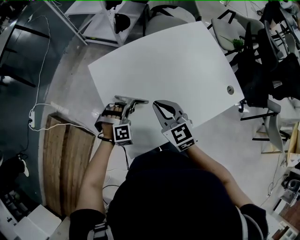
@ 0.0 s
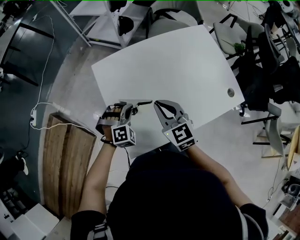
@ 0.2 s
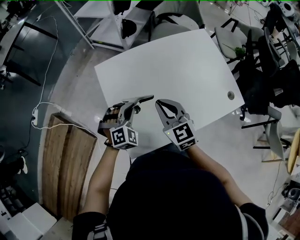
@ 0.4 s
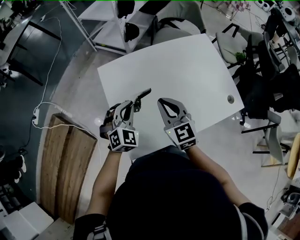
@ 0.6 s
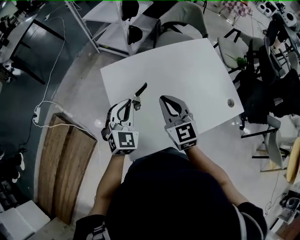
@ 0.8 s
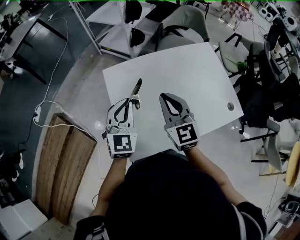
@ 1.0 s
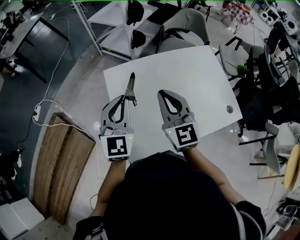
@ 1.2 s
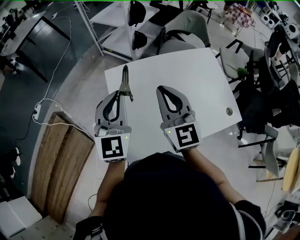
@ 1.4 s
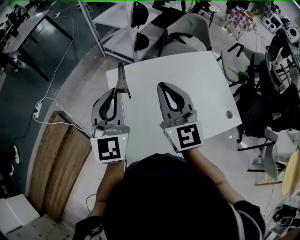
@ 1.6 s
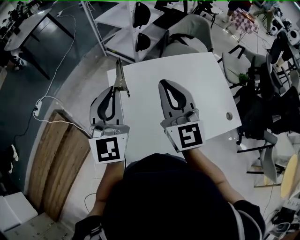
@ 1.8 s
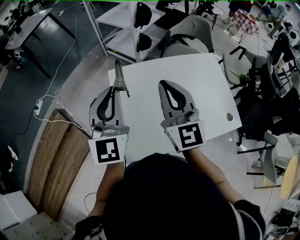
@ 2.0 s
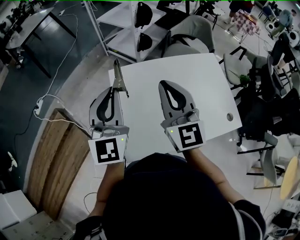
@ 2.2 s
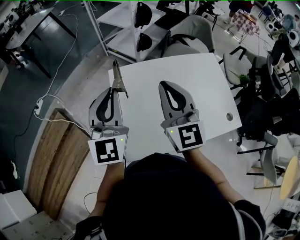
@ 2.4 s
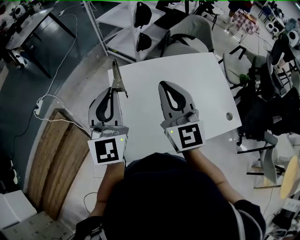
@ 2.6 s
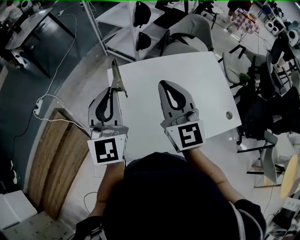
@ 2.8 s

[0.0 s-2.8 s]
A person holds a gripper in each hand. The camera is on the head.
0.0 to 1.4 s: The right gripper goes approximately 20 cm upward, and rotates about 30 degrees, while the left gripper shifts about 35 cm upward, and tips its fingers upward by about 50 degrees.
1.4 to 2.8 s: The grippers make only small movements.

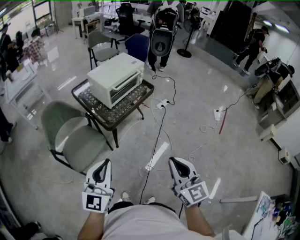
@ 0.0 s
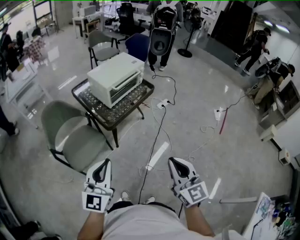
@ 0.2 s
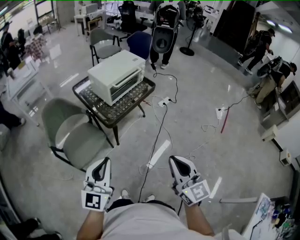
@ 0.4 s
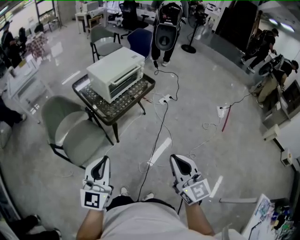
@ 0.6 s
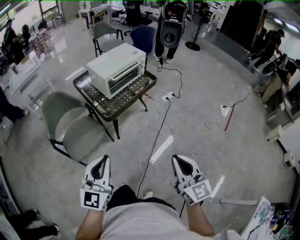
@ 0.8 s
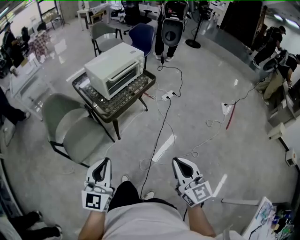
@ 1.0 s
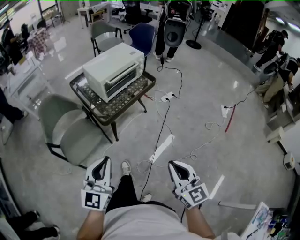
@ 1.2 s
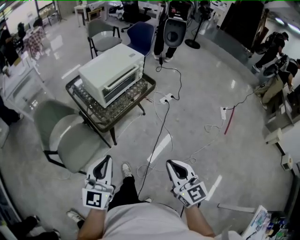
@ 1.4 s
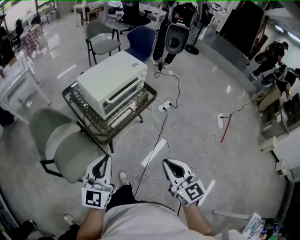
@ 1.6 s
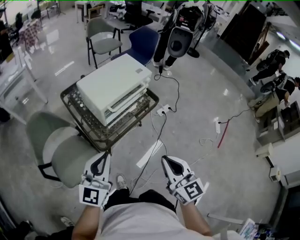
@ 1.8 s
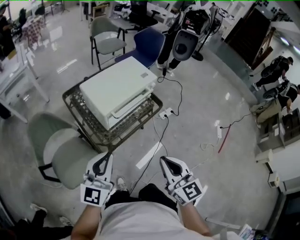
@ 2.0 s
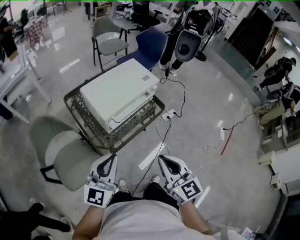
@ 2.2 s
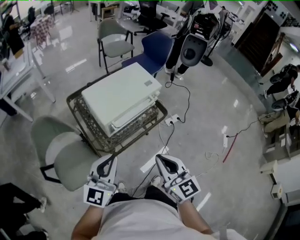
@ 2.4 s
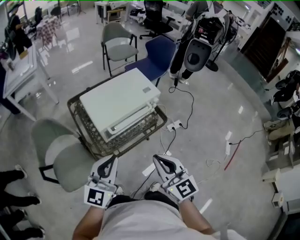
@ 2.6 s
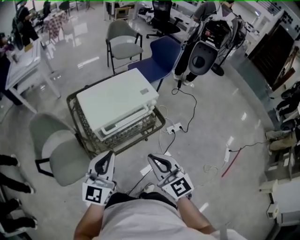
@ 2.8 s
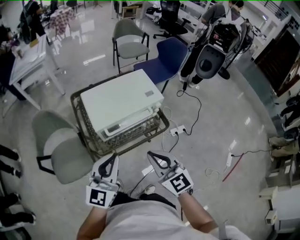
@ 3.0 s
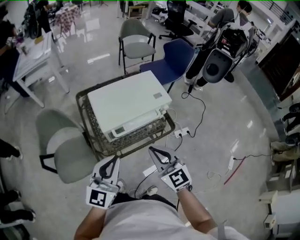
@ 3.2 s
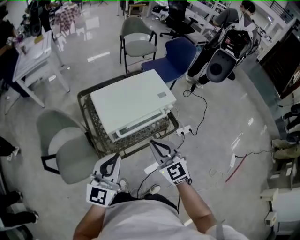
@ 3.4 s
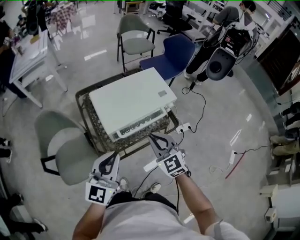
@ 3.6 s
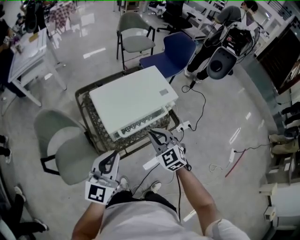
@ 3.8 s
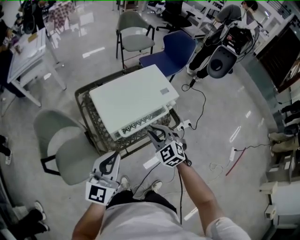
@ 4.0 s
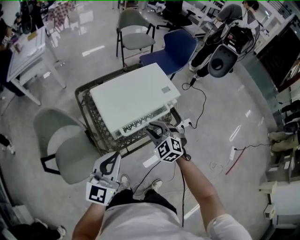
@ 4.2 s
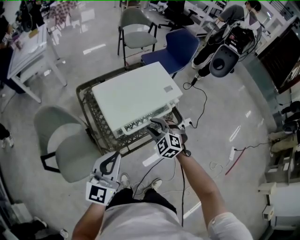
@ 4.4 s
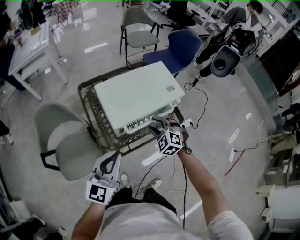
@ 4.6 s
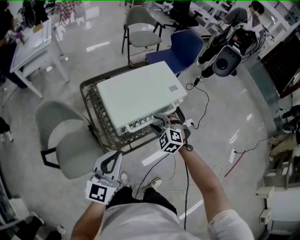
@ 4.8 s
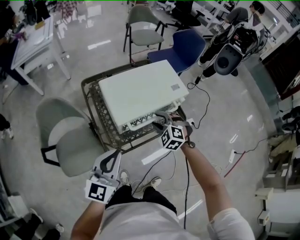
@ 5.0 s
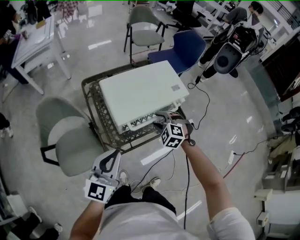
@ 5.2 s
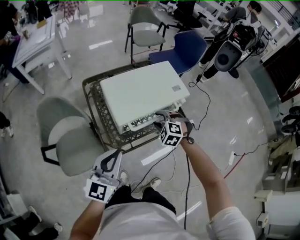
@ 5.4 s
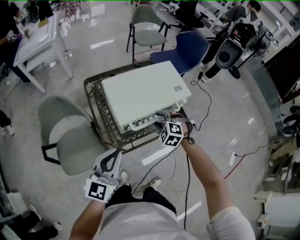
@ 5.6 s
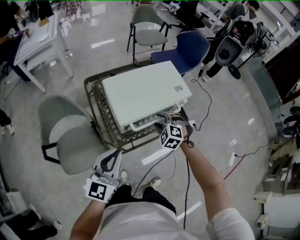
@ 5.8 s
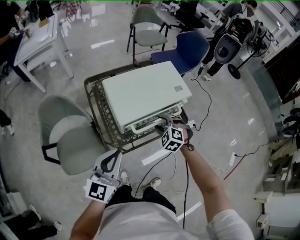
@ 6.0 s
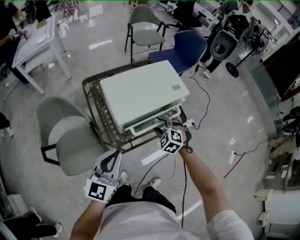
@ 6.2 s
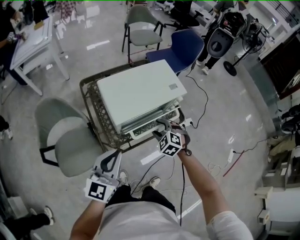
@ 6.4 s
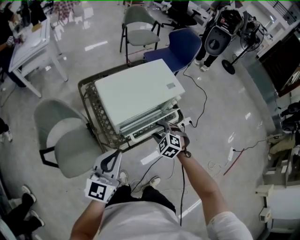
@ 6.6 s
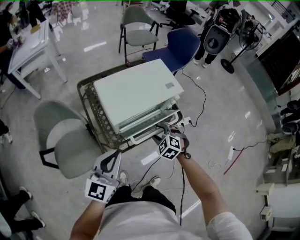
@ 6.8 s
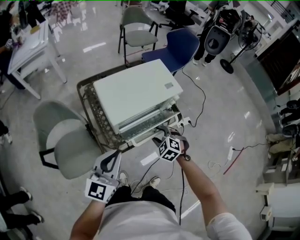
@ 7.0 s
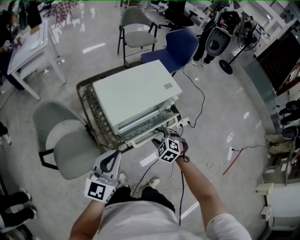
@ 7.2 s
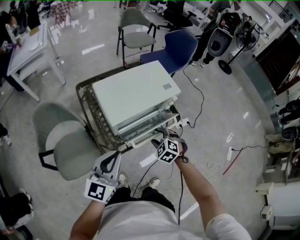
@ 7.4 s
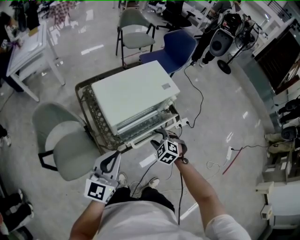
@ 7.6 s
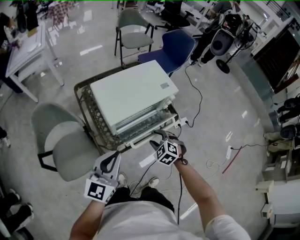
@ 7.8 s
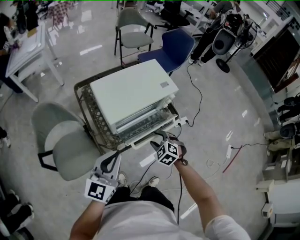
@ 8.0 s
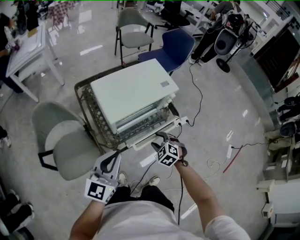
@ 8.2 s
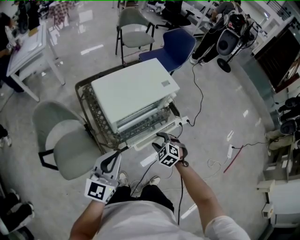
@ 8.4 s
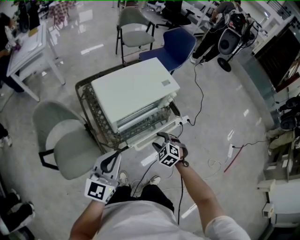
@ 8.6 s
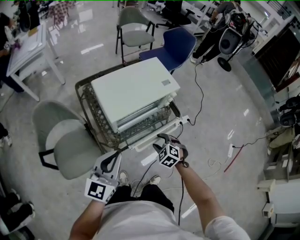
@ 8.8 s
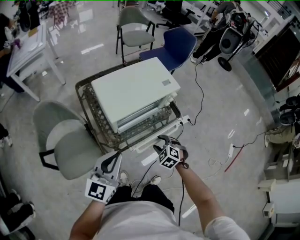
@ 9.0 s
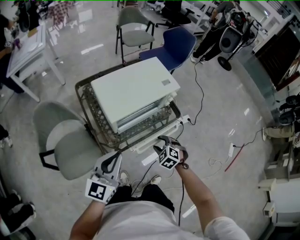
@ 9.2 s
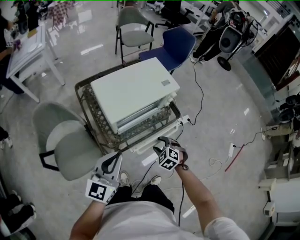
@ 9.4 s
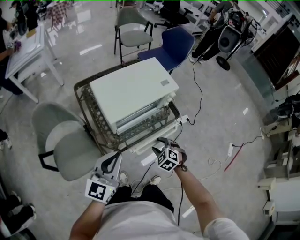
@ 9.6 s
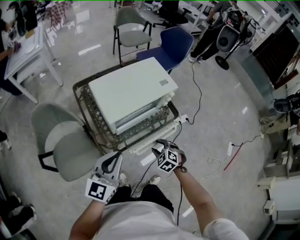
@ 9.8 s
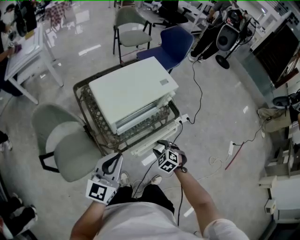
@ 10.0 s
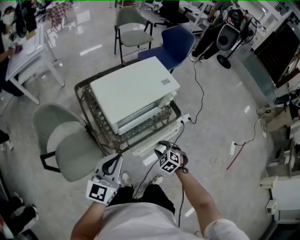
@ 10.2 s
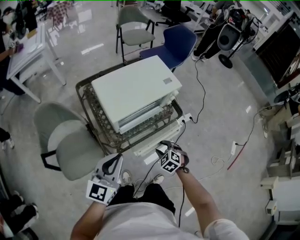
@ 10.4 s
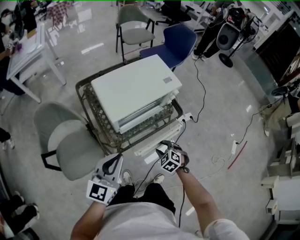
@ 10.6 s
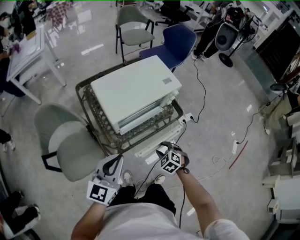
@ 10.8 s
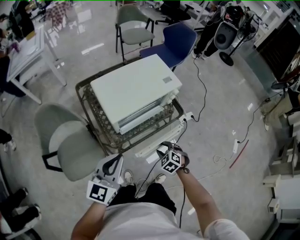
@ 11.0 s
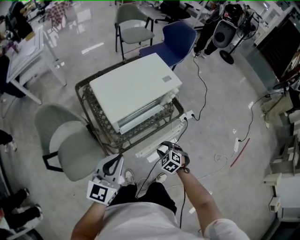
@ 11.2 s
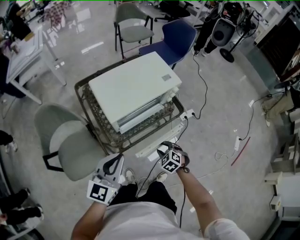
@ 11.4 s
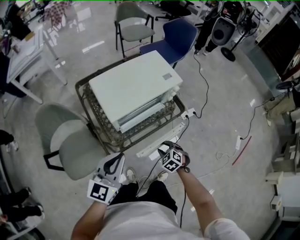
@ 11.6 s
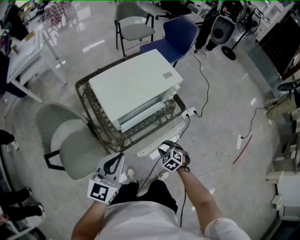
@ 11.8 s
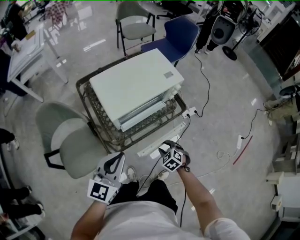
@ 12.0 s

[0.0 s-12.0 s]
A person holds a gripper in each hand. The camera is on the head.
0.0 to 1.6 s: Both grippers travel together forward, roughly 20 cm.
1.6 to 3.0 s: The left gripper is displaced forward and to the right by about 25 cm. The right gripper is displaced forward by roughly 30 cm, and turns by roughly 30 degrees.
3.0 to 4.4 s: The right gripper travels forward and downward by some 20 cm, turns by roughly 40 degrees, and opens up; the left gripper goes about 10 cm to the left.
4.4 to 6.0 s: The grippers make only small movements.
6.0 to 7.6 s: The right gripper goes approximately 10 cm backward.
7.6 to 9.0 s: The right gripper shifts by some 5 cm.
9.0 to 10.4 s: The grippers move only a little.
10.4 to 12.0 s: There are only small adjustments of the grippers.

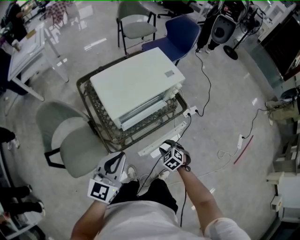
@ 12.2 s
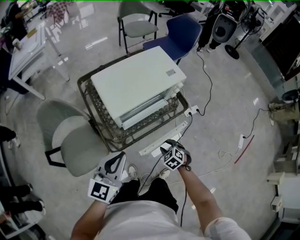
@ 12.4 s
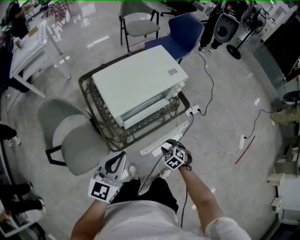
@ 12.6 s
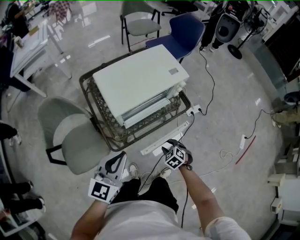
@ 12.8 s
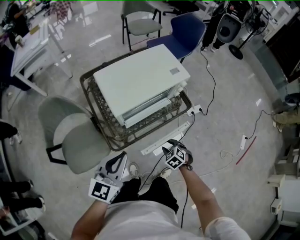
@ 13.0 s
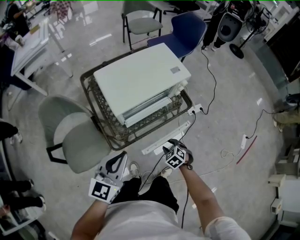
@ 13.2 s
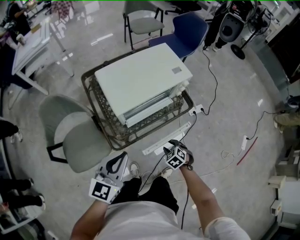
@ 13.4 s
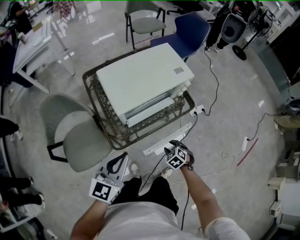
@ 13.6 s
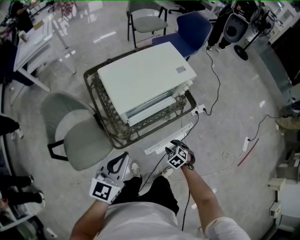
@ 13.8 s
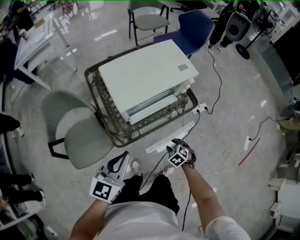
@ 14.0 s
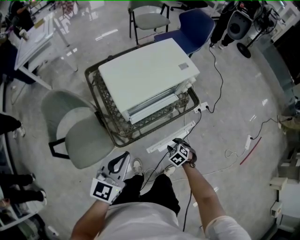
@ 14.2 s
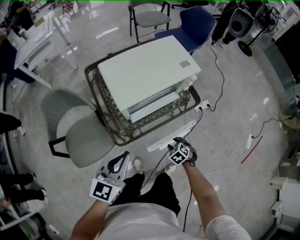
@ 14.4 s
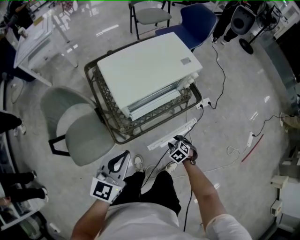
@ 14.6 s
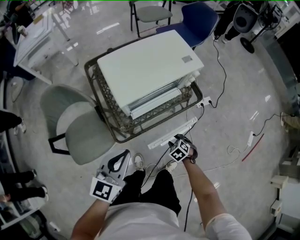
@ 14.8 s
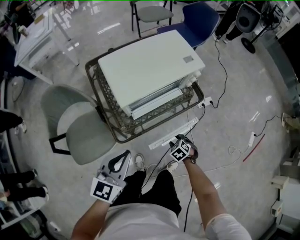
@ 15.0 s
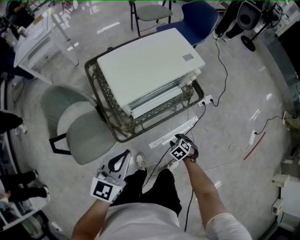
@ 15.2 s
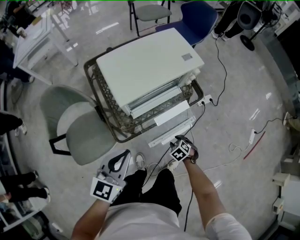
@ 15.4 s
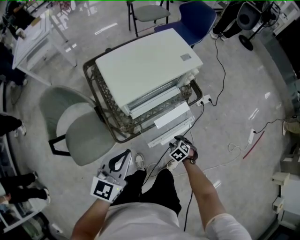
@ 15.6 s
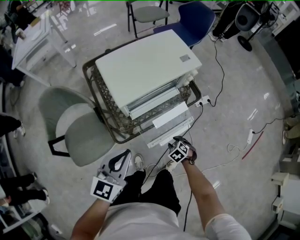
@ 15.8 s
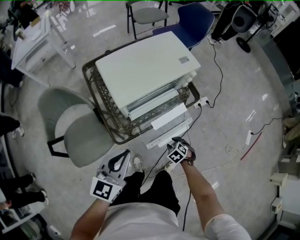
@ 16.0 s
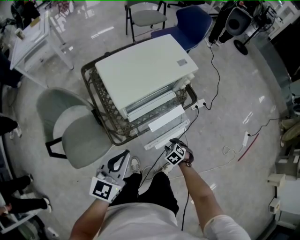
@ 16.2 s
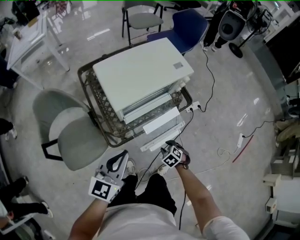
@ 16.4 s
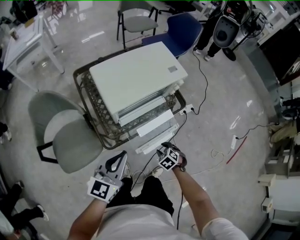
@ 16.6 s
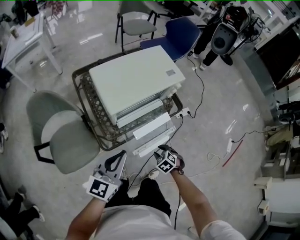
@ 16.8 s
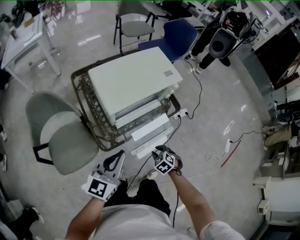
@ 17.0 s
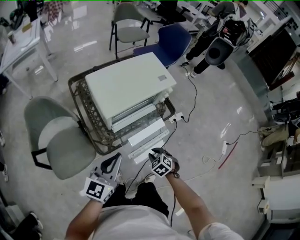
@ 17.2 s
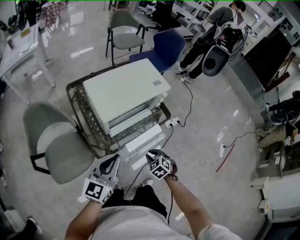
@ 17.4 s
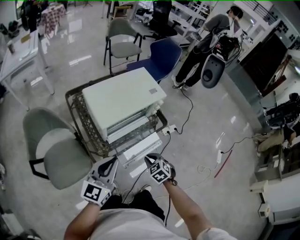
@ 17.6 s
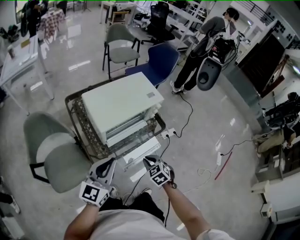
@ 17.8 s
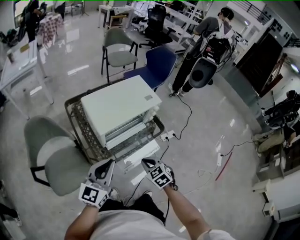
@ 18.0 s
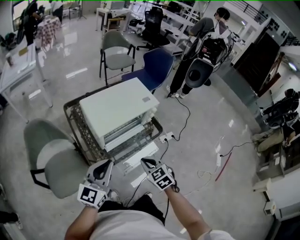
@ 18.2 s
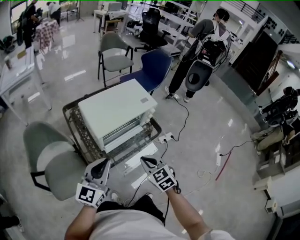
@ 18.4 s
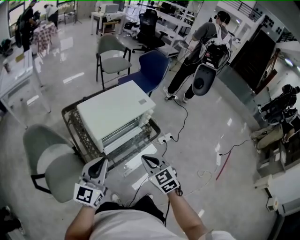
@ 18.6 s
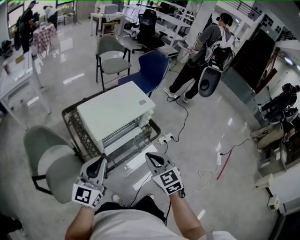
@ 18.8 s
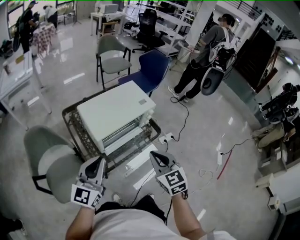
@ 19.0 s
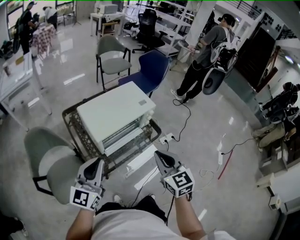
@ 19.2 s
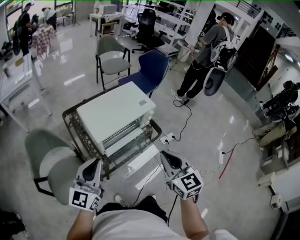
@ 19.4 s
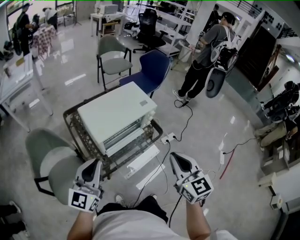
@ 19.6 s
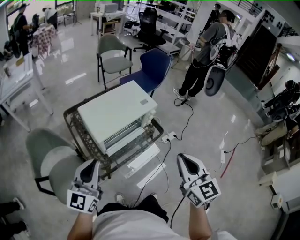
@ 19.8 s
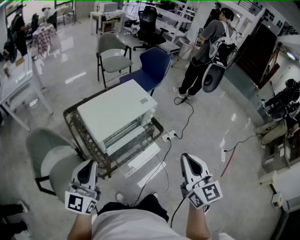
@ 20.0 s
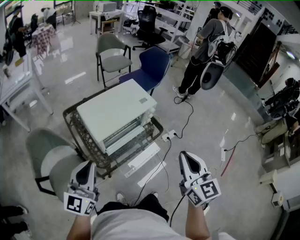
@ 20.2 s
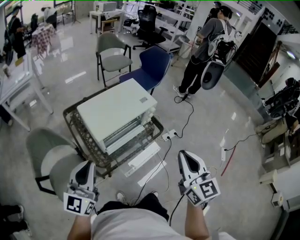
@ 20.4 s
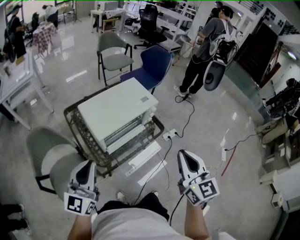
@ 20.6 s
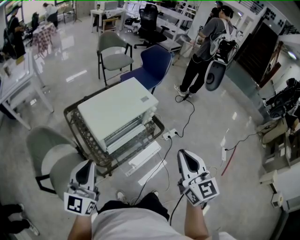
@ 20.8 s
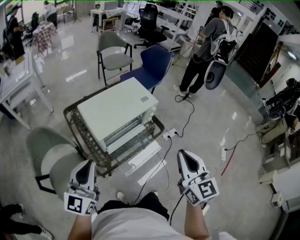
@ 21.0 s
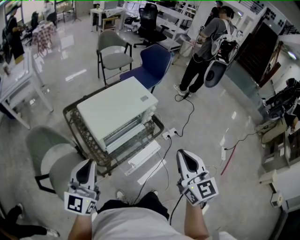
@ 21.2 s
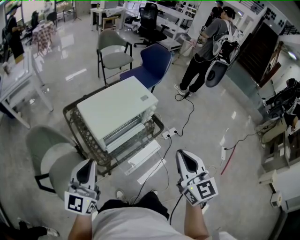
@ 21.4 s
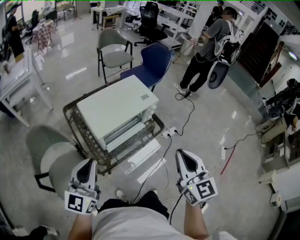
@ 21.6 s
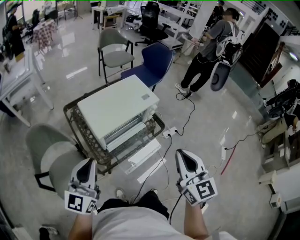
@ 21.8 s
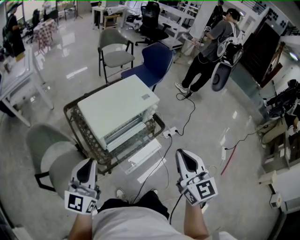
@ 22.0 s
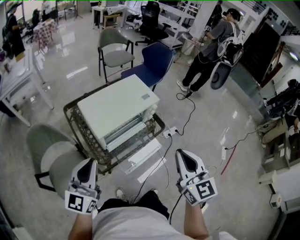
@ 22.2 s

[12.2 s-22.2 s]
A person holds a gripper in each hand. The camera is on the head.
12.2 to 13.6 s: The grippers stay close to where they were, moving slightly.
13.6 to 15.0 s: The right gripper shifts some 5 cm downward.
15.0 to 16.4 s: The grippers make only small movements.
16.4 to 18.0 s: The right gripper goes roughly 20 cm upward, turns by roughly 30 degrees, and closes; the left gripper heads upward, covering some 5 cm.
18.0 to 19.4 s: The right gripper is displaced upward by approximately 25 cm, and points its fingers about 30 degrees further upward. Meanwhile the left gripper heads upward, covering some 5 cm.
19.4 to 20.8 s: The right gripper moves approximately 5 cm.
20.8 to 22.2 s: The two grippers keep their place.
